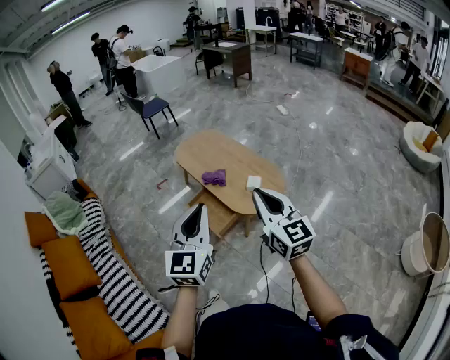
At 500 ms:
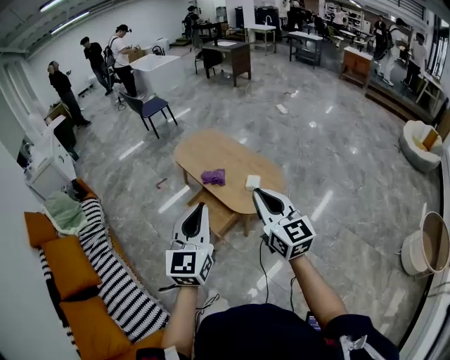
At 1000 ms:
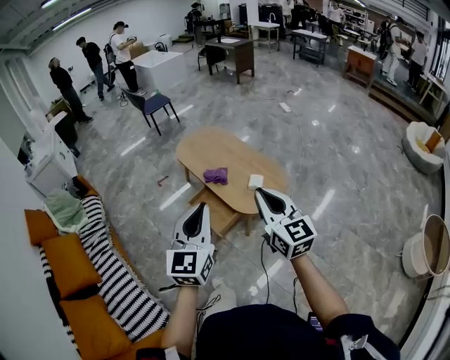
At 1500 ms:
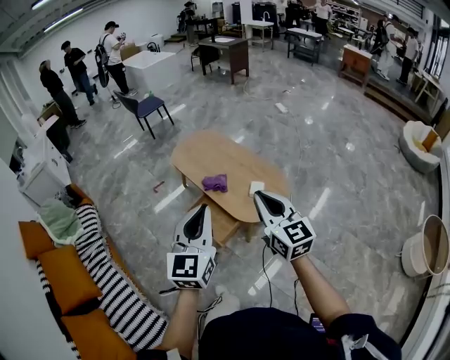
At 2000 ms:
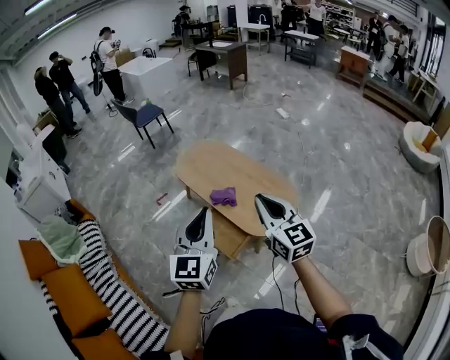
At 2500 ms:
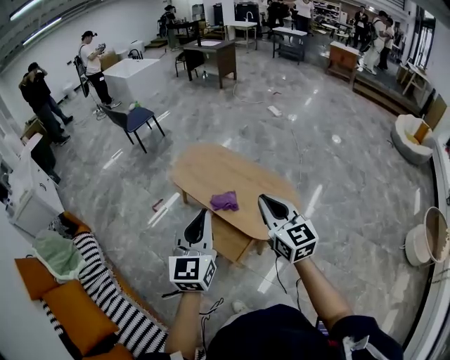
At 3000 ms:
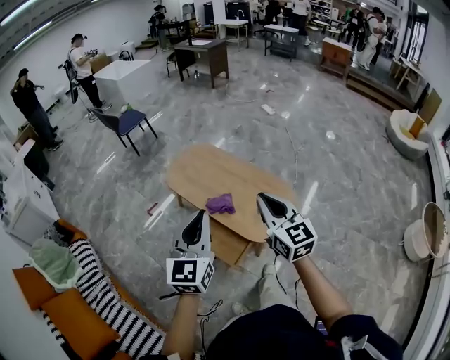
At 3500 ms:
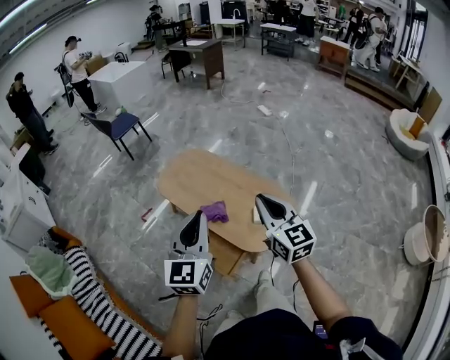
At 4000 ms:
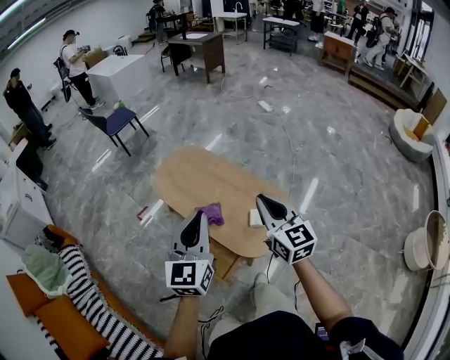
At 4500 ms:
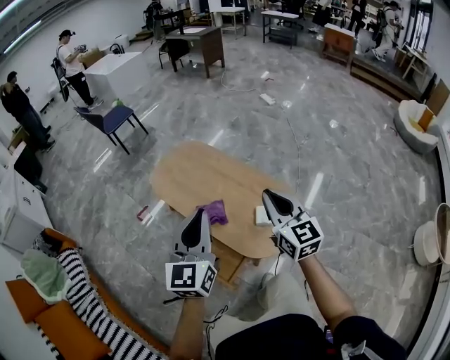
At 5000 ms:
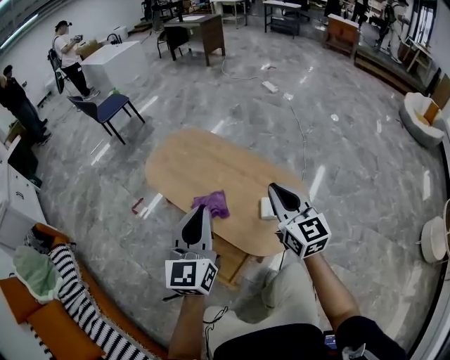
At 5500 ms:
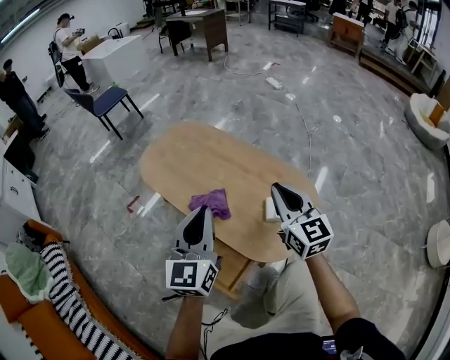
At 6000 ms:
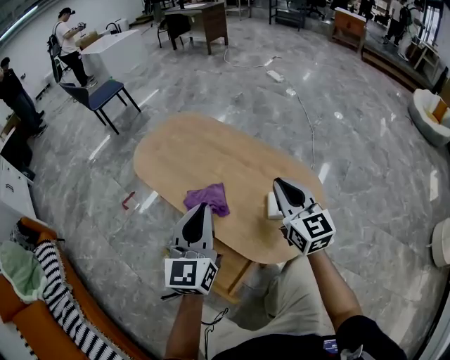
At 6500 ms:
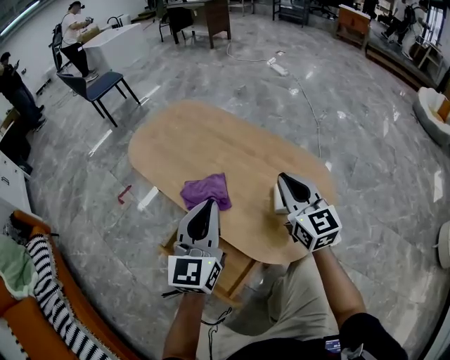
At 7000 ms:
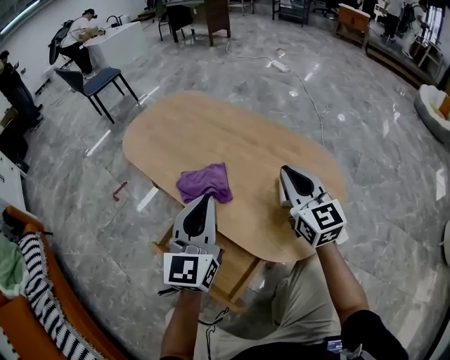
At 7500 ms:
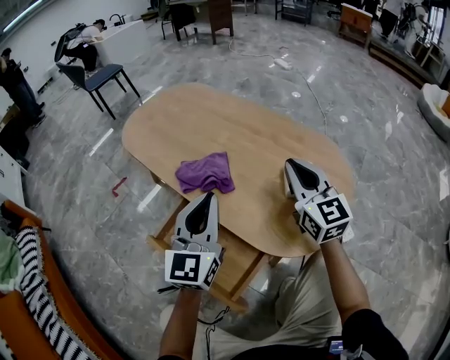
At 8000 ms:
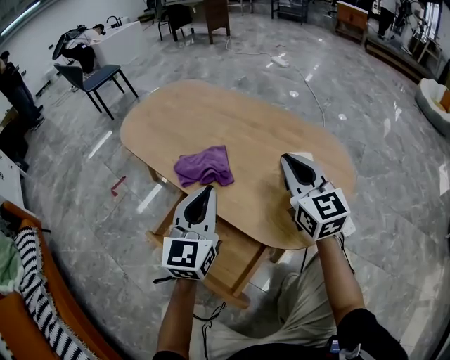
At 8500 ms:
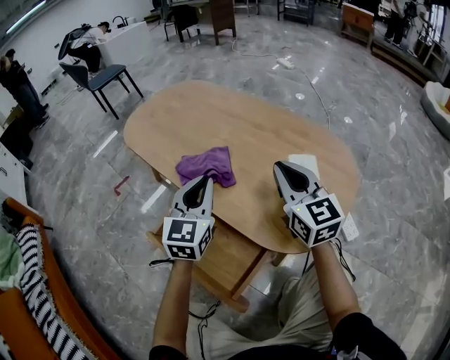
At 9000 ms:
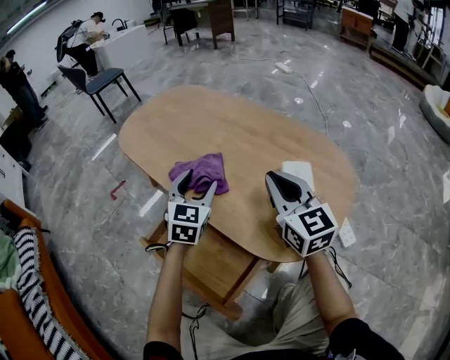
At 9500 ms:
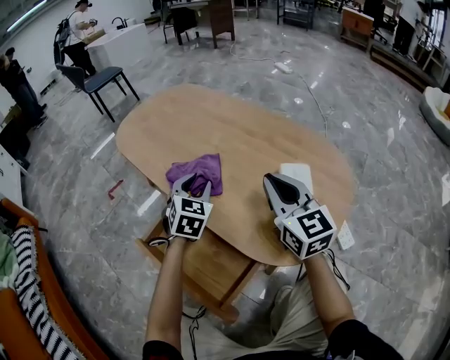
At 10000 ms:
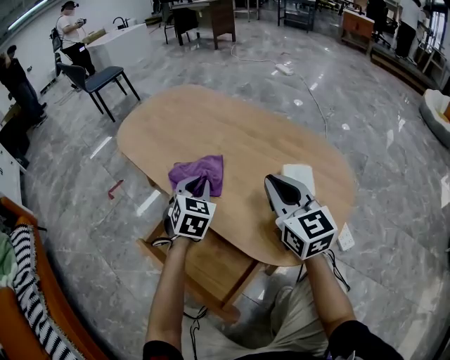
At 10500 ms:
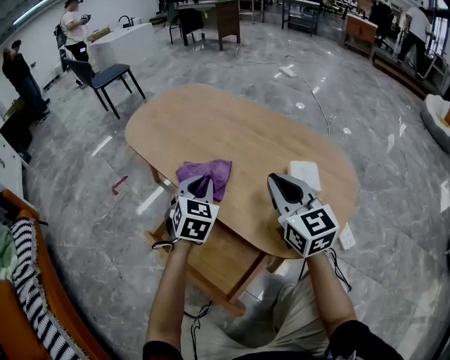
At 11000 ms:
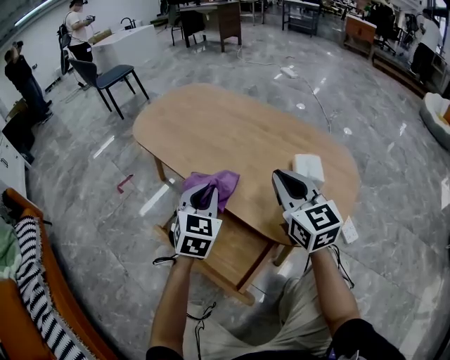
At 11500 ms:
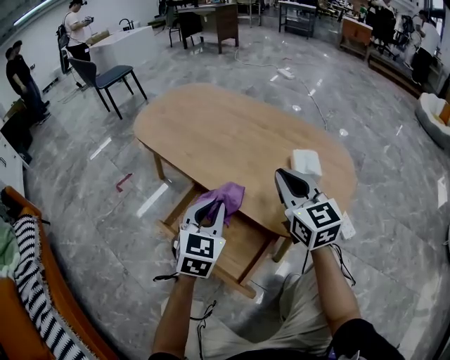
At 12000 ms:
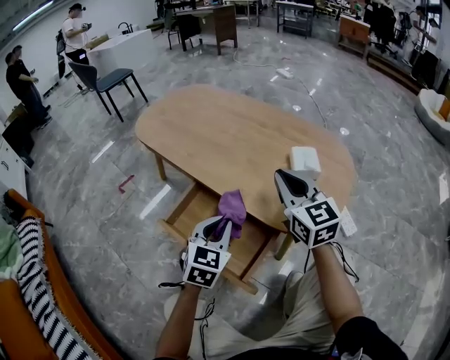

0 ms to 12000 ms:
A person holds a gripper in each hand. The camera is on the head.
0 ms to 2000 ms: Both grippers travel together forward, roughly 20 cm.
2000 ms to 4000 ms: The left gripper is displaced forward by approximately 20 cm. The right gripper goes some 20 cm forward and to the right.
4000 ms to 6000 ms: Both grippers travel together downward, some 30 cm.
6000 ms to 8000 ms: Both grippers move downward, some 20 cm.
8000 ms to 10000 ms: The left gripper goes approximately 15 cm forward and downward, turns by about 40 degrees, and opens, then closes again.
10000 ms to 12000 ms: The right gripper travels backward by roughly 5 cm. The left gripper is displaced backward by approximately 20 cm.

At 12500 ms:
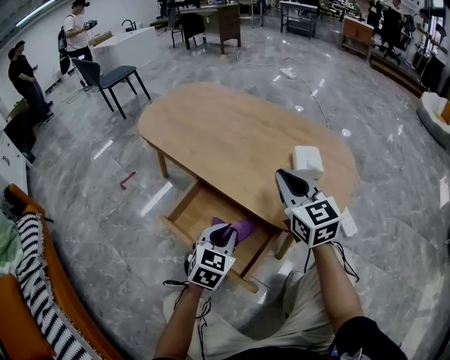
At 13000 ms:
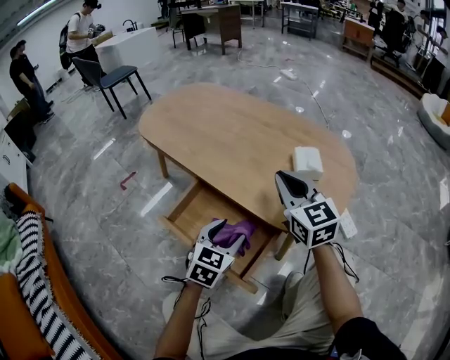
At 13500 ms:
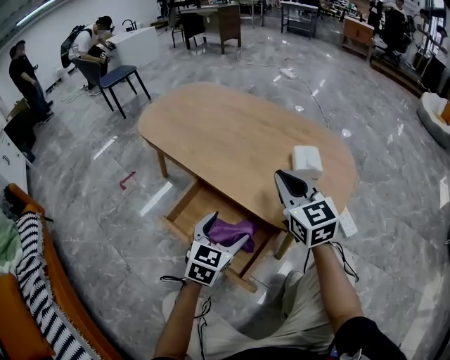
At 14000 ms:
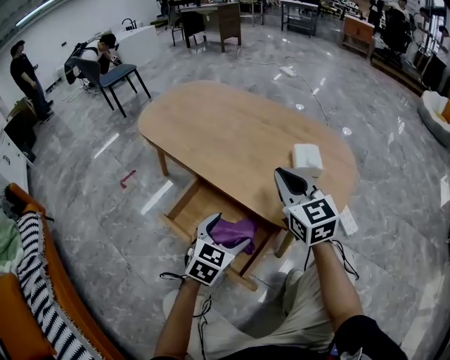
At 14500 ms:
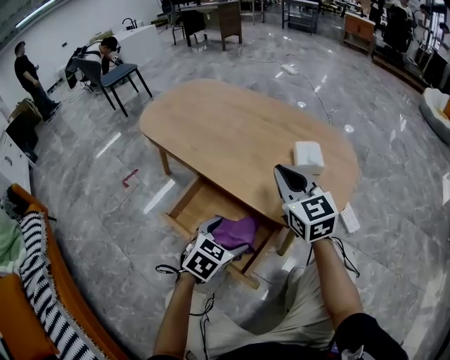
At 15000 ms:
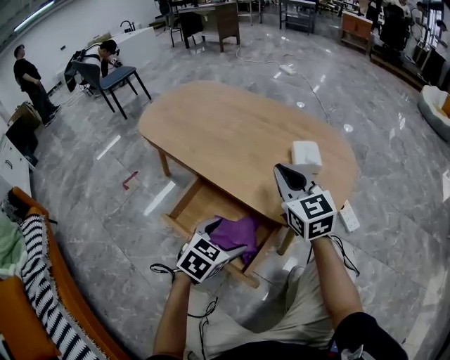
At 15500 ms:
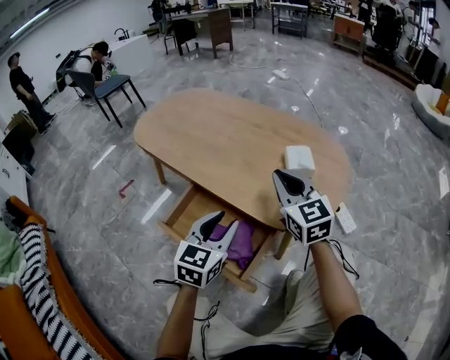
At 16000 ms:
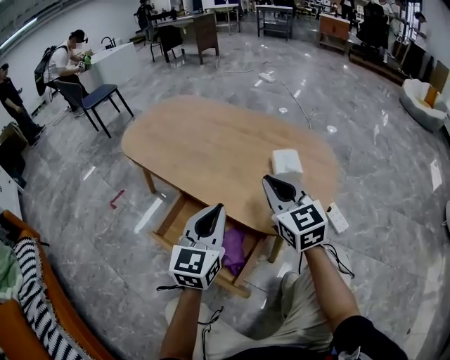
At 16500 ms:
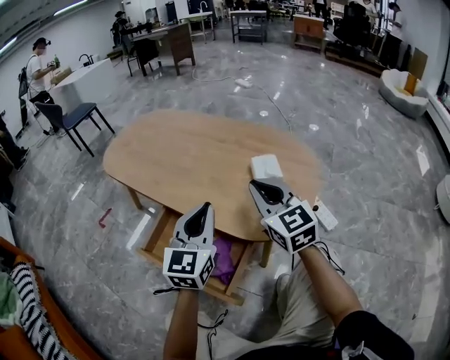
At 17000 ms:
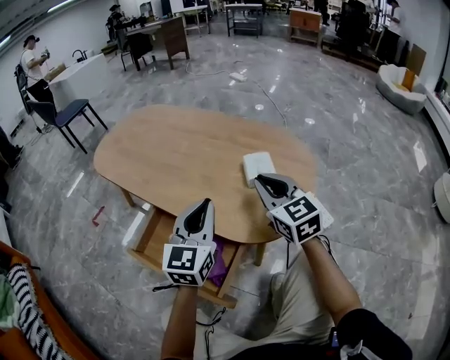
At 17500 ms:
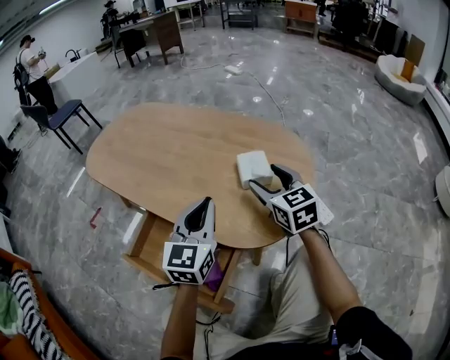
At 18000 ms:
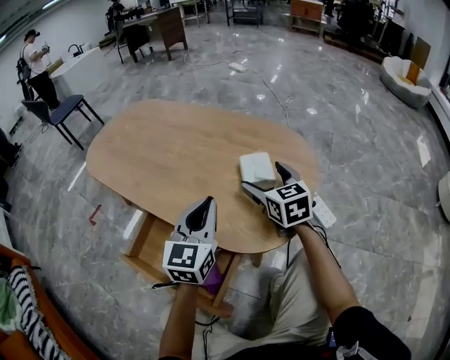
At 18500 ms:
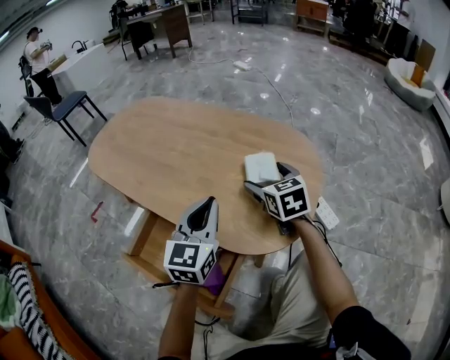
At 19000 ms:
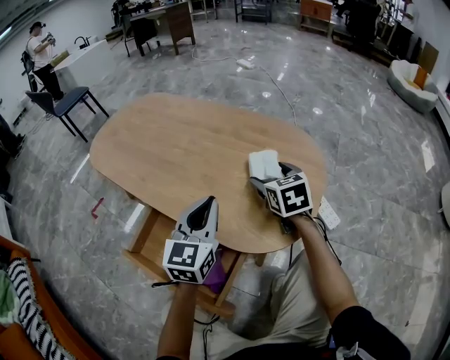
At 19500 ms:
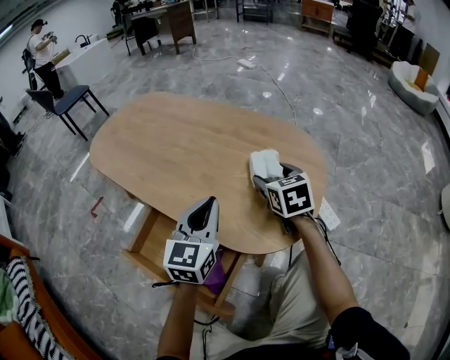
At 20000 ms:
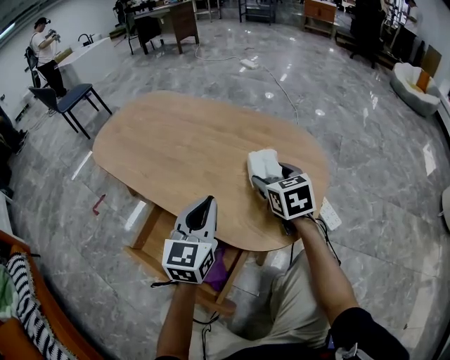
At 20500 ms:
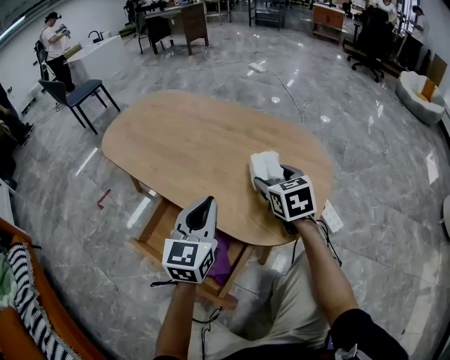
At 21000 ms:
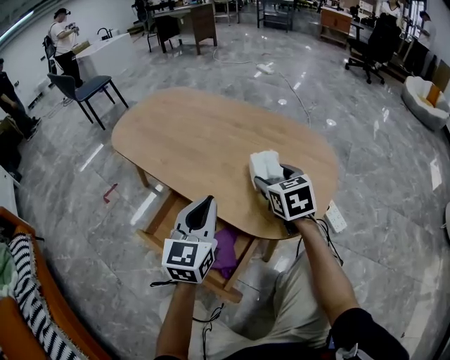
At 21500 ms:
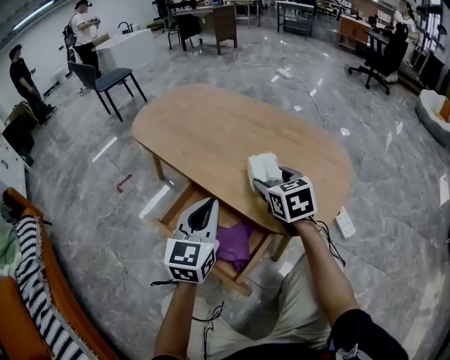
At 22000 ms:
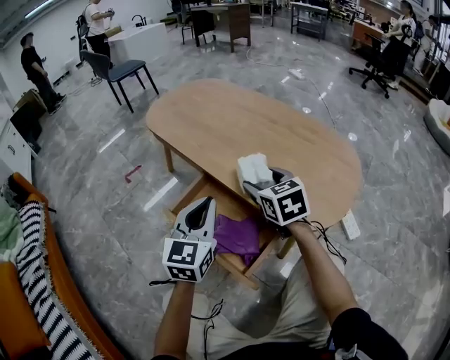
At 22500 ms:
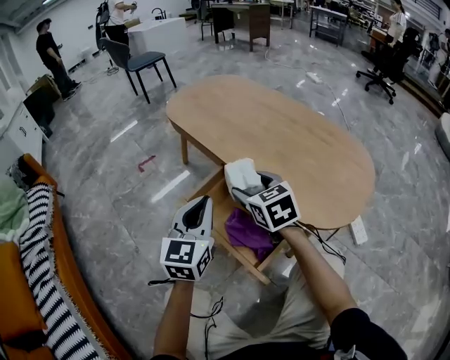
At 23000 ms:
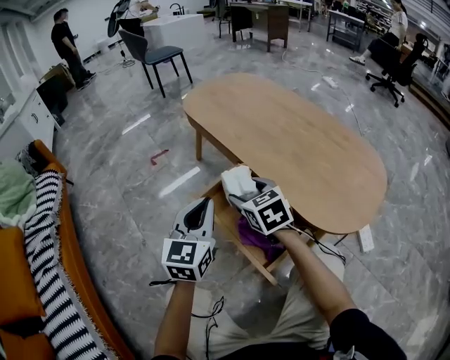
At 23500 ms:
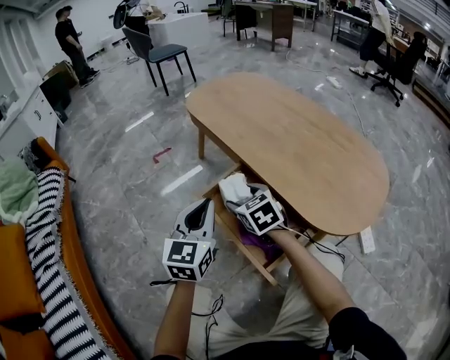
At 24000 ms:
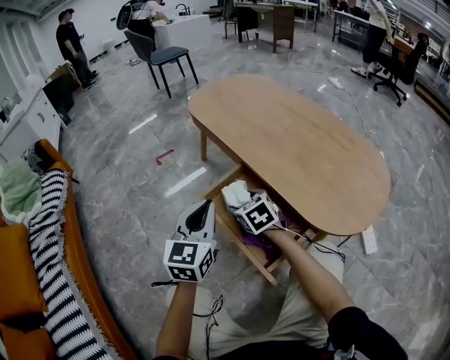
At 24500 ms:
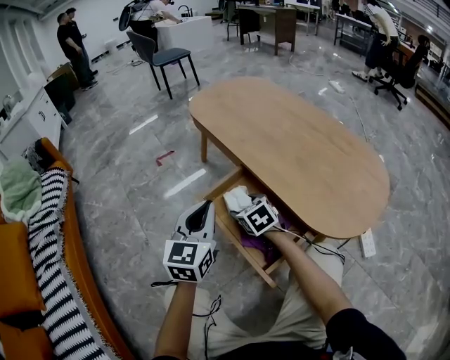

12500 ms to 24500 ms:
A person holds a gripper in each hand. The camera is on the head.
12500 ms to 14500 ms: The left gripper opens.
14500 ms to 16500 ms: The right gripper shifts by some 5 cm, while the left gripper moves upward and forward, roughly 20 cm, tilts its fingers approximately 40 degrees upward, and closes up.
16500 ms to 18500 ms: The right gripper is displaced forward, downward and to the right by some 20 cm, changes its angle by approximately 30 degrees, and opens up; the left gripper moves forward, approximately 5 cm.
18500 ms to 20500 ms: The grippers move only a little.
20500 ms to 22500 ms: The right gripper moves to the left, approximately 25 cm, and changes its angle by some 30 degrees. The left gripper is displaced to the left and backward by roughly 20 cm.
22500 ms to 24500 ms: The right gripper goes approximately 15 cm downward and to the left.

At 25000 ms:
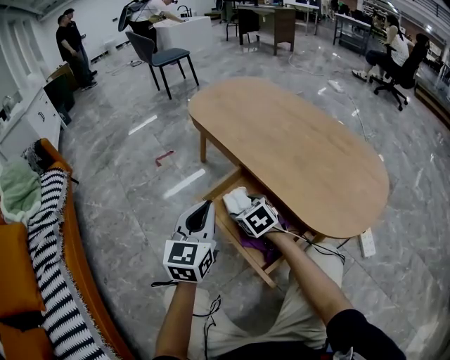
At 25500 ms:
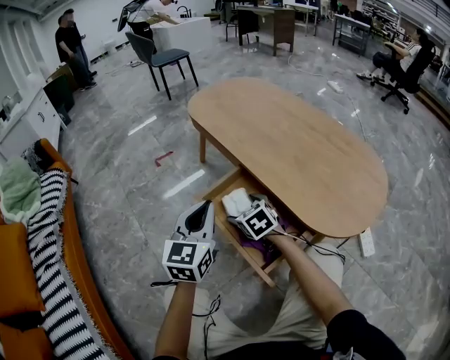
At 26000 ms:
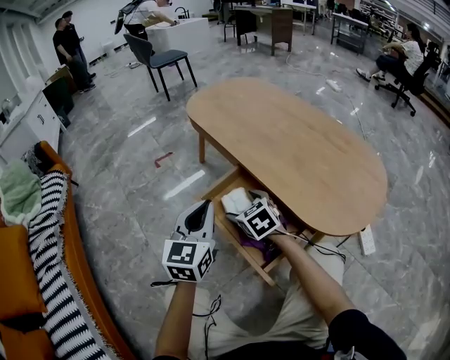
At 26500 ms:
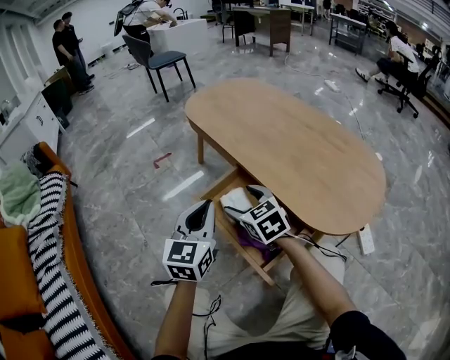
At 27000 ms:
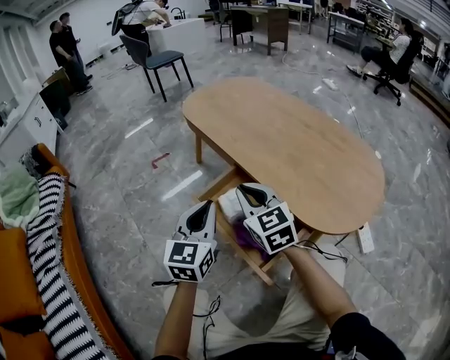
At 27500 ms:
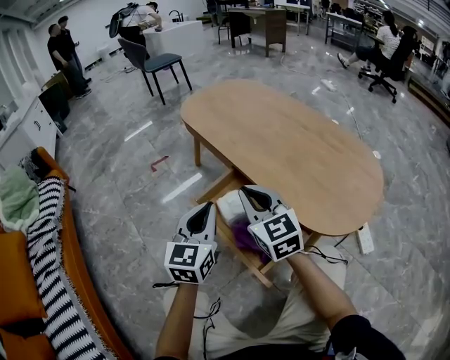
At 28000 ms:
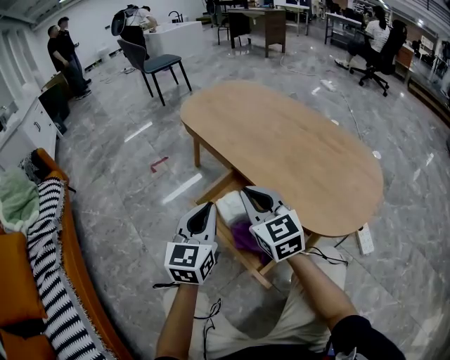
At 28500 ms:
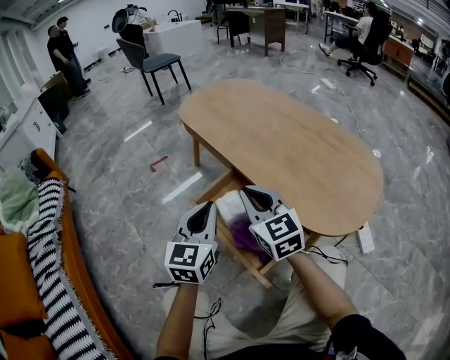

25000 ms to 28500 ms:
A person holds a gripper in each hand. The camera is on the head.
25000 ms to 27000 ms: The right gripper is displaced upward by roughly 15 cm, swivels approximately 30 degrees, and closes its fingers.
27000 ms to 28500 ms: The grippers move only a little.
